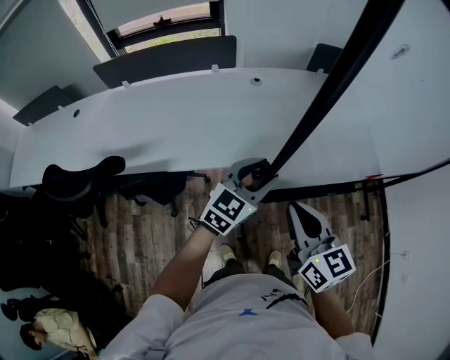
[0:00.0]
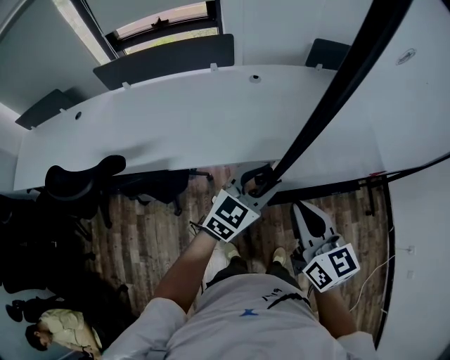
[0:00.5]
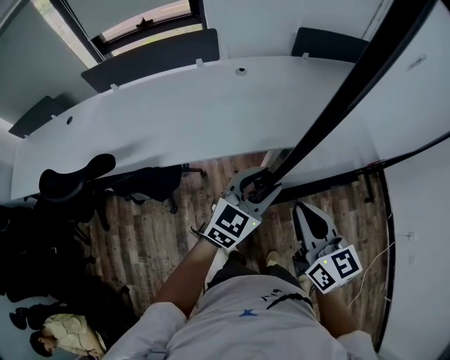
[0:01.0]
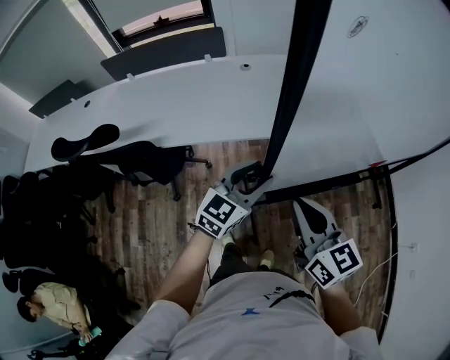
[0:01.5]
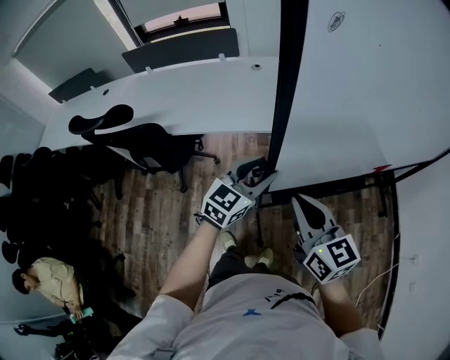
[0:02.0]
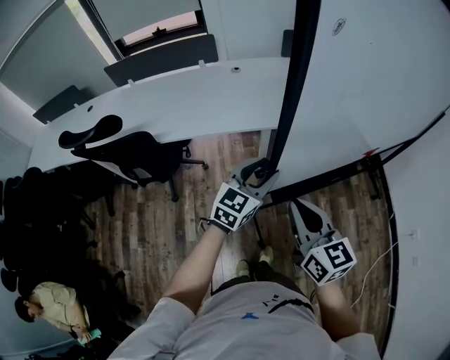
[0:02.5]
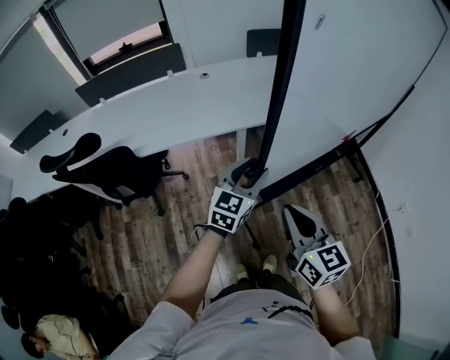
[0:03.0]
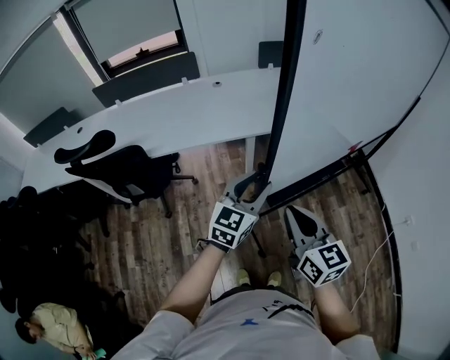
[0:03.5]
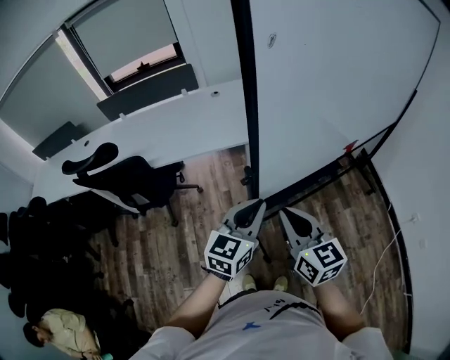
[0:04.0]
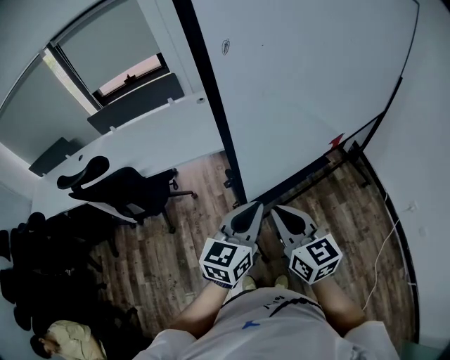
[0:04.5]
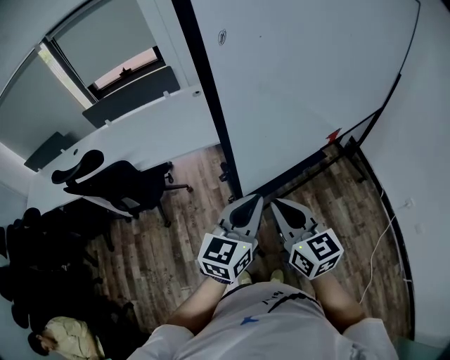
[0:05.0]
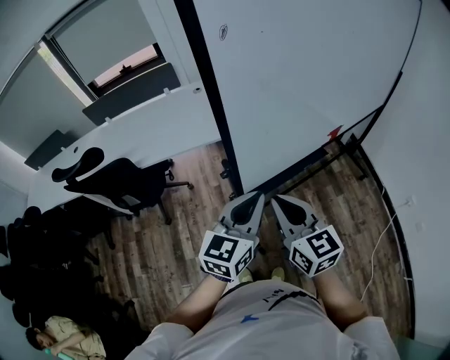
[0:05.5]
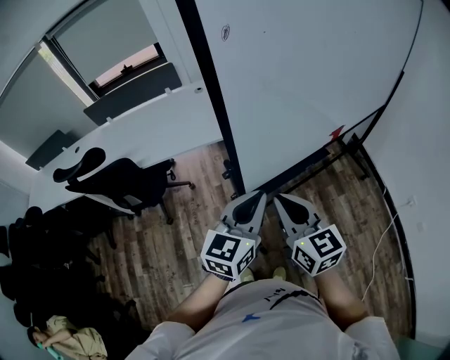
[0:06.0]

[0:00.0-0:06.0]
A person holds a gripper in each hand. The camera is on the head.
0:00.0 to 0:02.0: The left gripper shifts about 20 cm backward and to the right, while the right gripper goes roughly 25 cm to the right and backward.
0:02.0 to 0:04.0: The grippers both shift backward by about 15 cm. The left gripper closes up.
0:04.0 to 0:06.0: The left gripper travels to the right by some 5 cm.

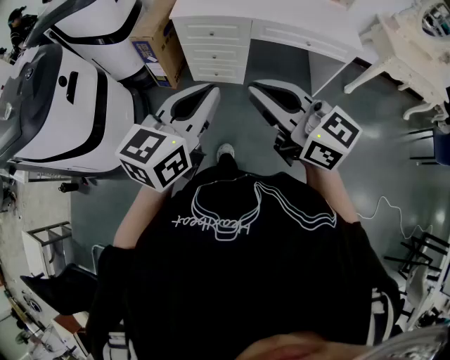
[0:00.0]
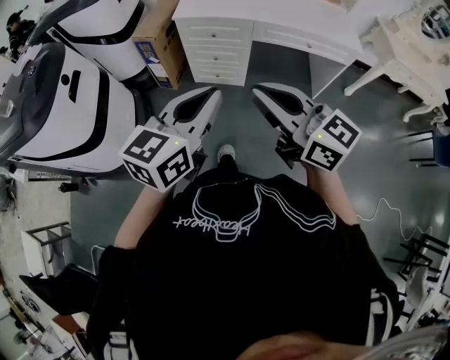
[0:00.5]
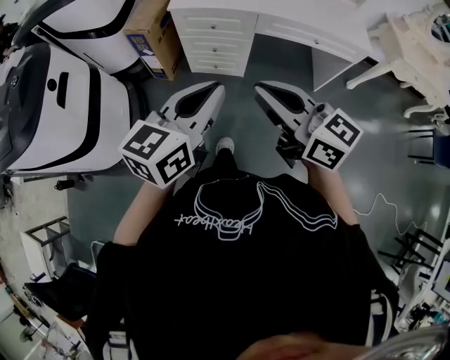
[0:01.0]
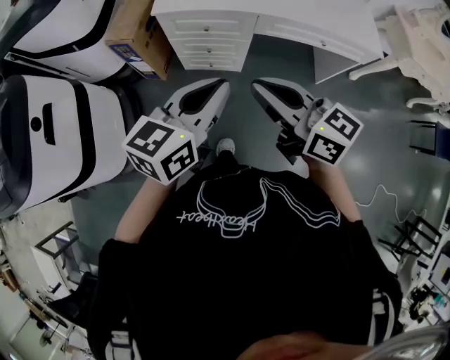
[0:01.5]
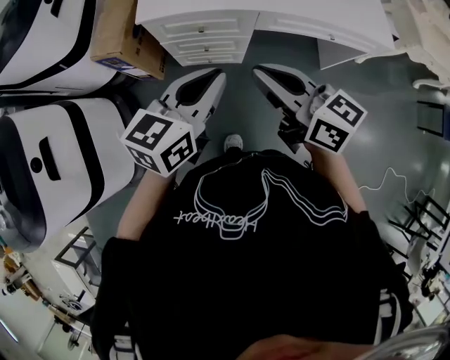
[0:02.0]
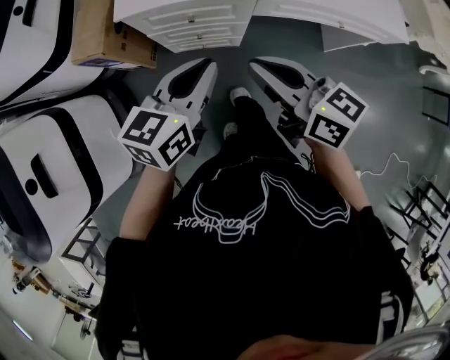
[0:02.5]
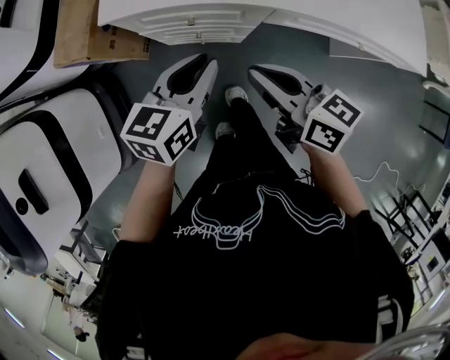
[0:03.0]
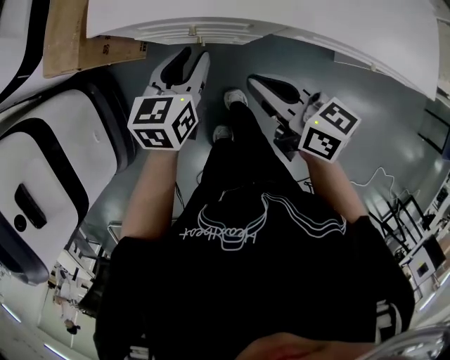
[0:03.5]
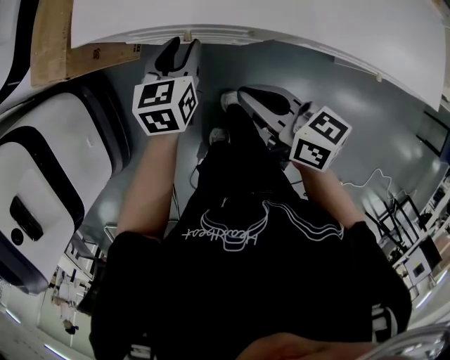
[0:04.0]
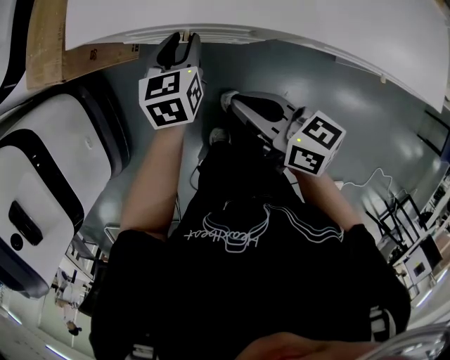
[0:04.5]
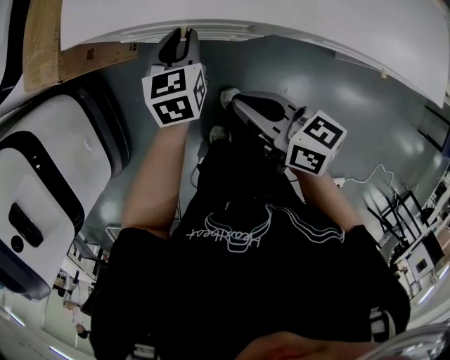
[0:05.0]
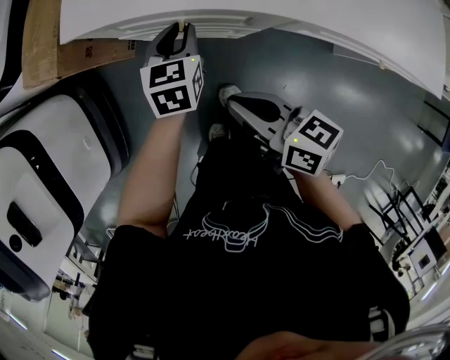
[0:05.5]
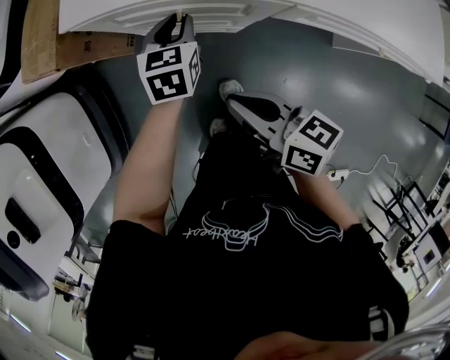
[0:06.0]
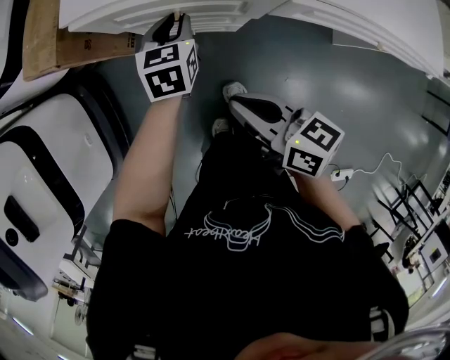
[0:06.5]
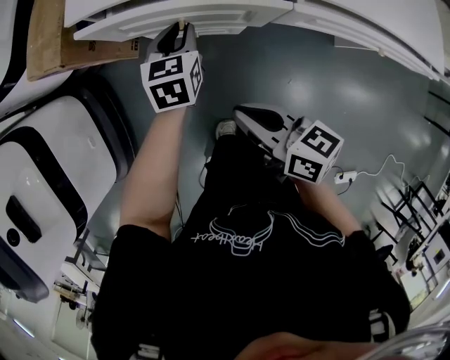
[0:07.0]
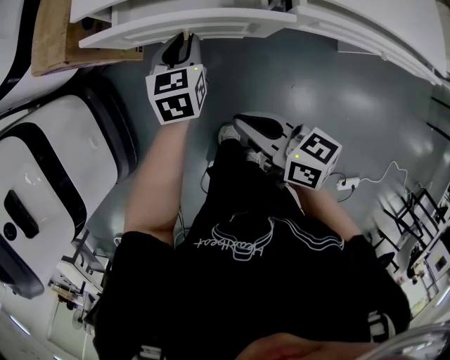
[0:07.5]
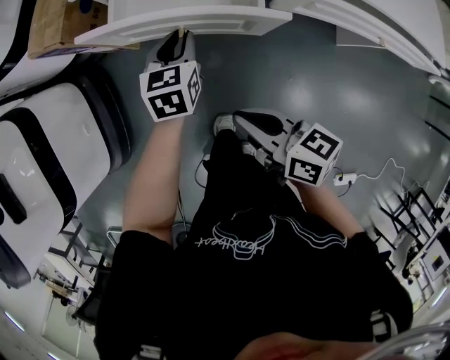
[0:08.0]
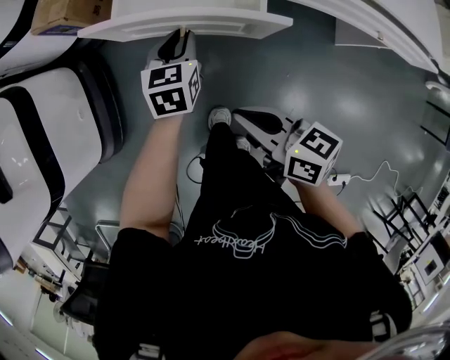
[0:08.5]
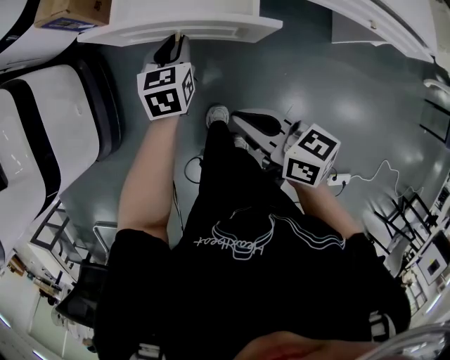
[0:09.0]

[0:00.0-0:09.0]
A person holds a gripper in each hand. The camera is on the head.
0:00.0 to 0:02.0: The left gripper is displaced forward by some 30 cm, while the right gripper moves forward and downward, roughly 30 cm, and turns by about 20 degrees.
0:02.0 to 0:04.5: Both grippers move downward and forward, roughly 35 cm. The left gripper swivels approximately 40 degrees, and opens; the right gripper changes its angle by some 20 degrees.
0:04.5 to 0:07.0: The right gripper is displaced backward by some 10 cm.
0:07.0 to 0:09.0: The right gripper is displaced backward by roughly 15 cm. The left gripper moves backward and to the left, about 15 cm.

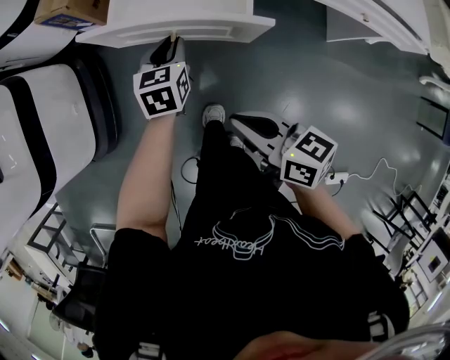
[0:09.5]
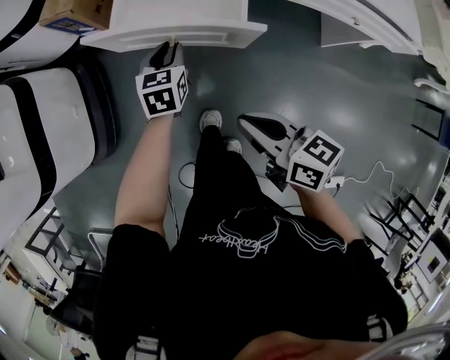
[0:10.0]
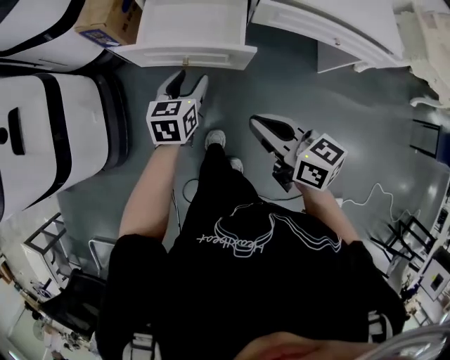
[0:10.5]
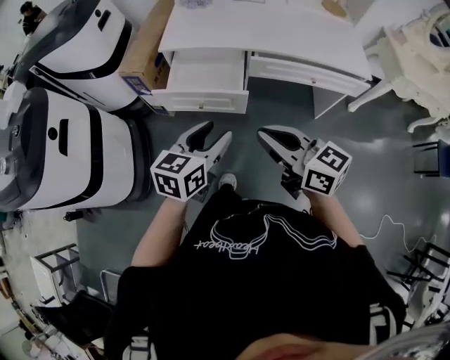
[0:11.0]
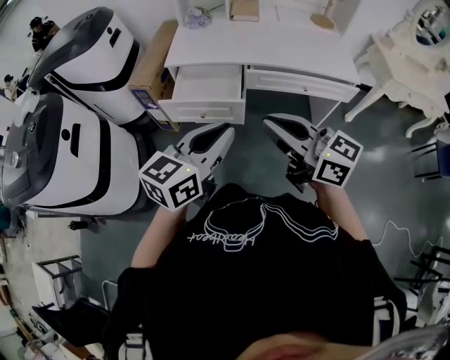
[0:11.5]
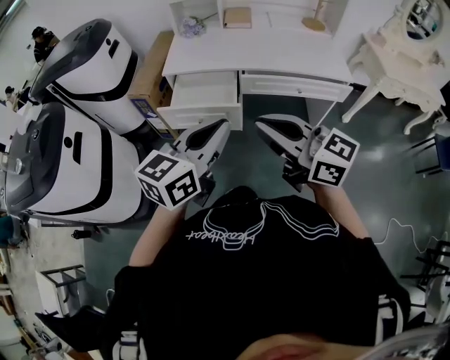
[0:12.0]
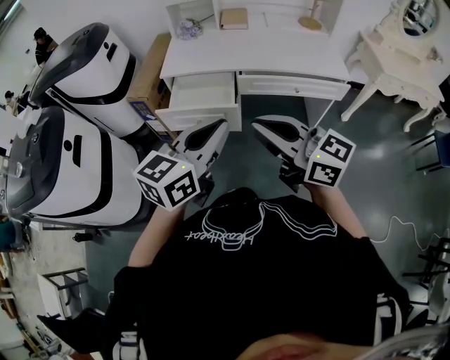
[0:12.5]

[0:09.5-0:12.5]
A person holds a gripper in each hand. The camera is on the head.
0:09.5 to 0:11.0: The right gripper is displaced upward by approximately 25 cm, and rotates about 30 degrees. The left gripper shifts some 35 cm upward and backward, changes its angle by about 30 degrees, and opens up.
0:11.0 to 0:12.5: Both grippers travel together upward and backward, roughly 15 cm. The left gripper closes.

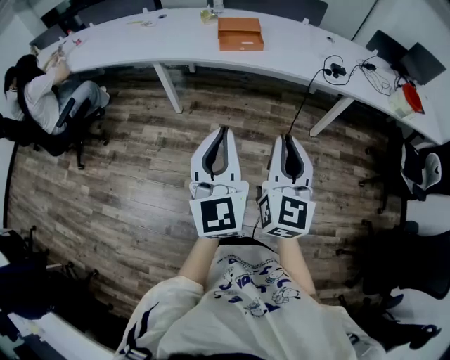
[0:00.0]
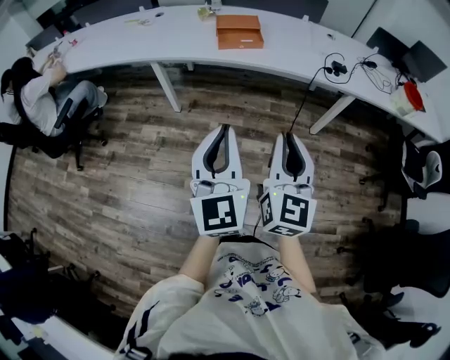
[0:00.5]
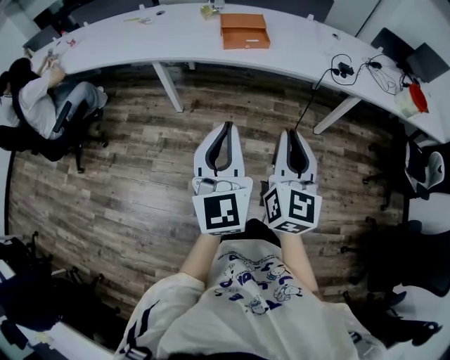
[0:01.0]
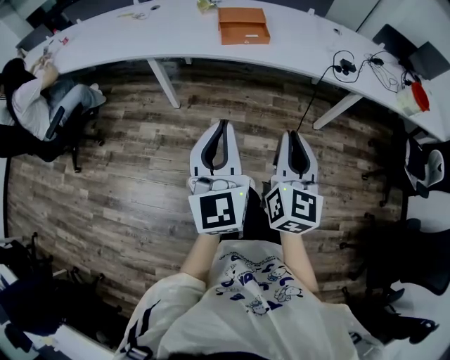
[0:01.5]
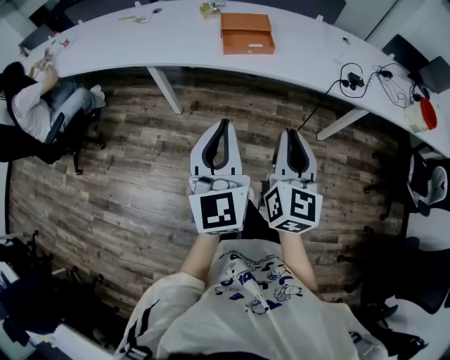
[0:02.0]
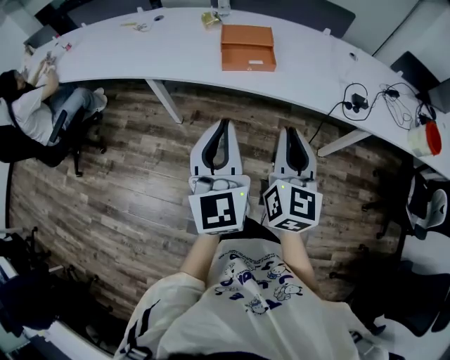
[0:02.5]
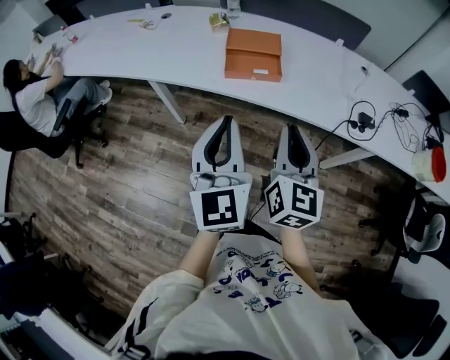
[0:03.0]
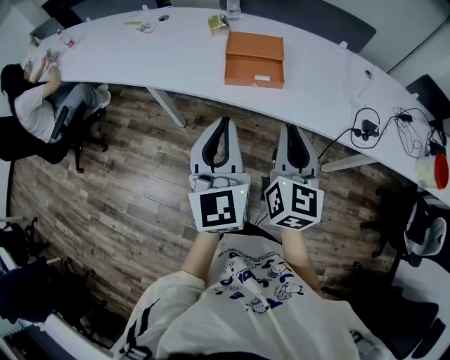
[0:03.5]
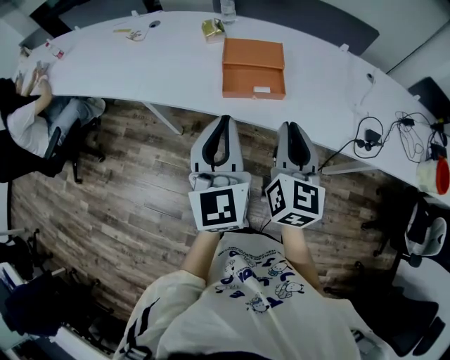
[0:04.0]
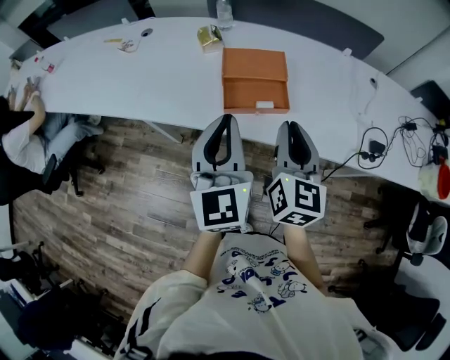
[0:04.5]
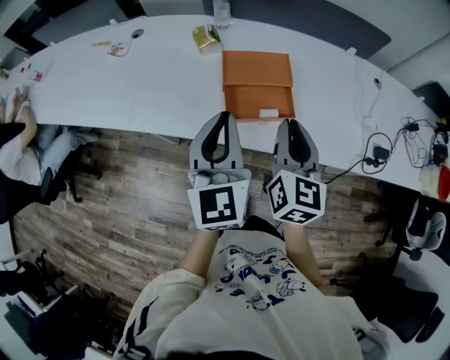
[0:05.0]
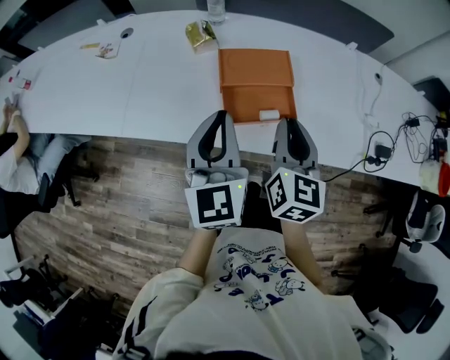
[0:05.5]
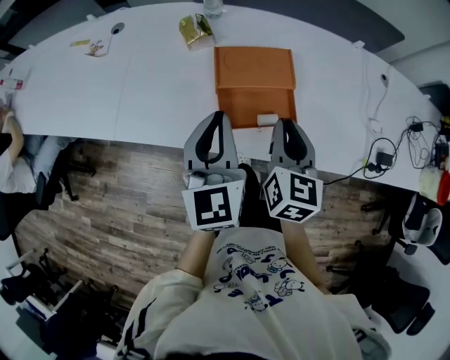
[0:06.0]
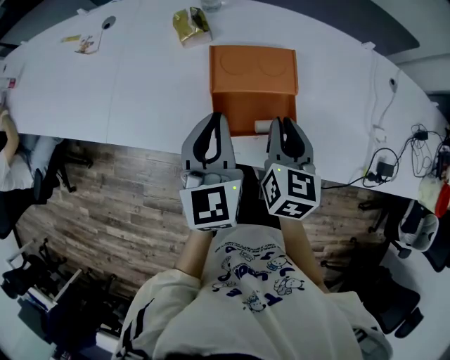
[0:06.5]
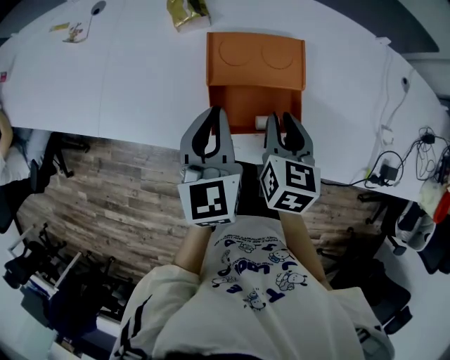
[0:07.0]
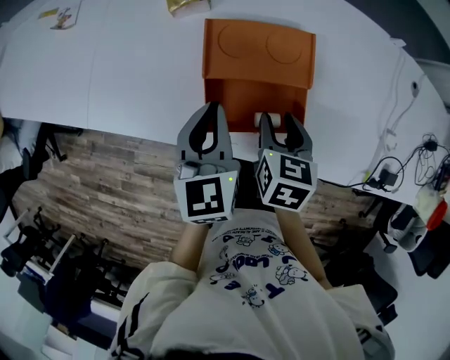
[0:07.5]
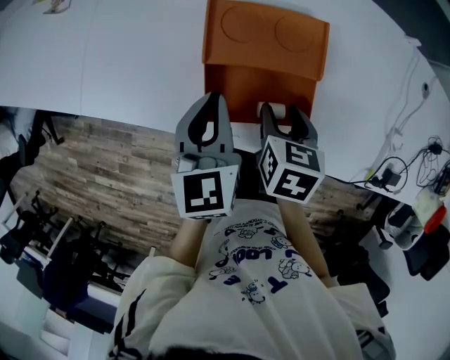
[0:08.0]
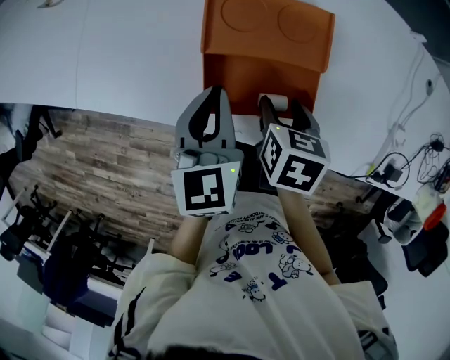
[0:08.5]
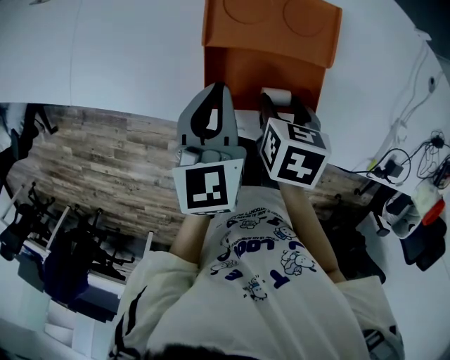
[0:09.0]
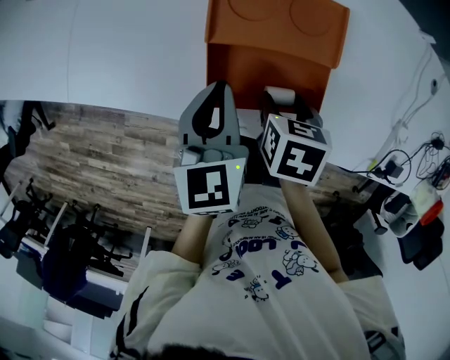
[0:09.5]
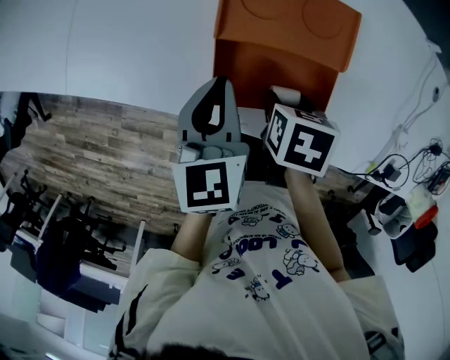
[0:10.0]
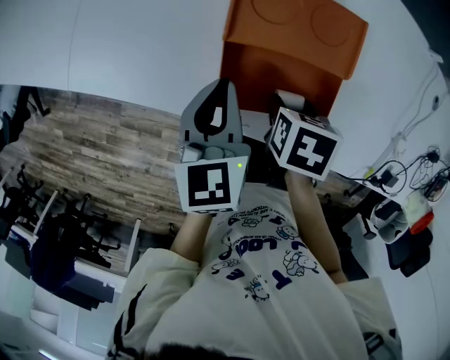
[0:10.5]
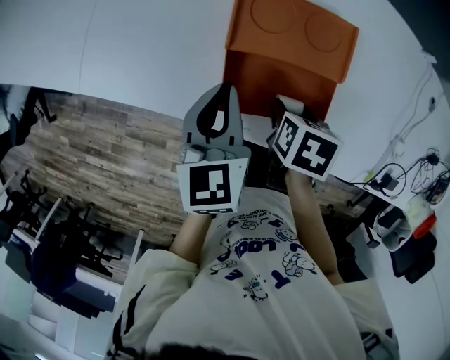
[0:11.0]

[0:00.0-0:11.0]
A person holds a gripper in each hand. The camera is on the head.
0:00.0 to 0:02.0: The two grippers go approximately 15 cm forward.
0:02.0 to 0:03.5: Both grippers travel together forward, some 20 cm.
0:03.5 to 0:05.5: The two grippers go roughly 25 cm forward.
0:05.5 to 0:07.5: The grippers both shift downward and forward by roughly 20 cm. The right gripper points its fingers roughly 40 degrees further downward, and opens its fingers, while the left gripper changes its angle by approximately 20 degrees.
0:07.5 to 0:09.0: The right gripper shifts about 5 cm downward.
0:09.0 to 0:11.0: The grippers make only small movements.
